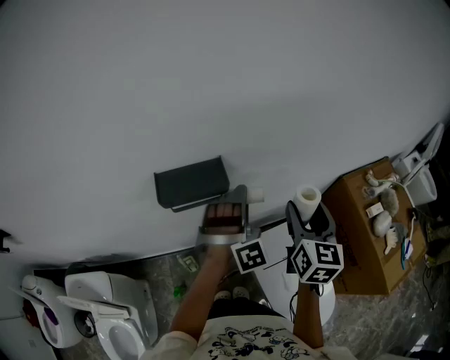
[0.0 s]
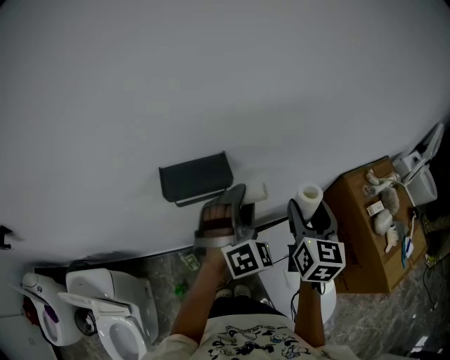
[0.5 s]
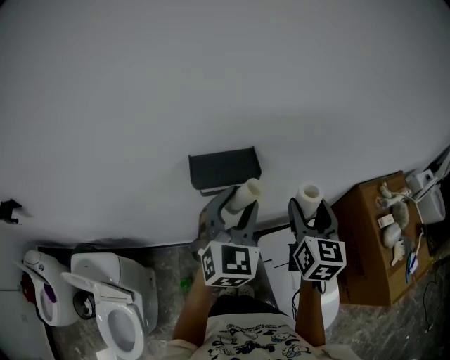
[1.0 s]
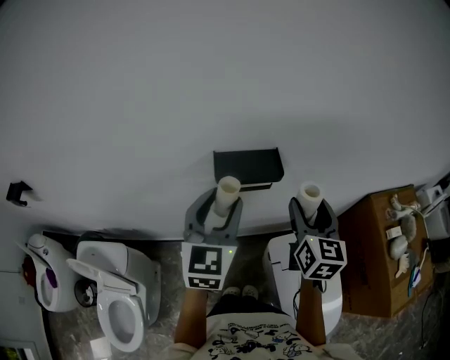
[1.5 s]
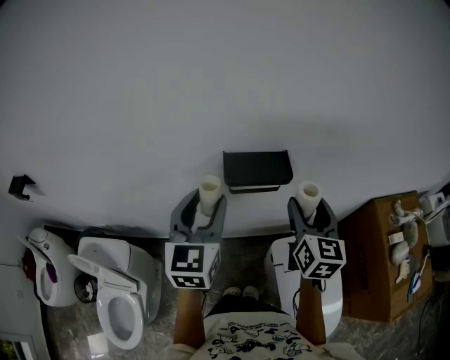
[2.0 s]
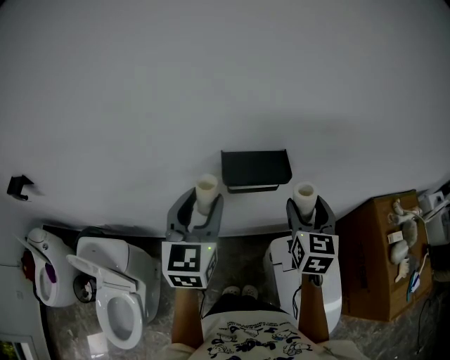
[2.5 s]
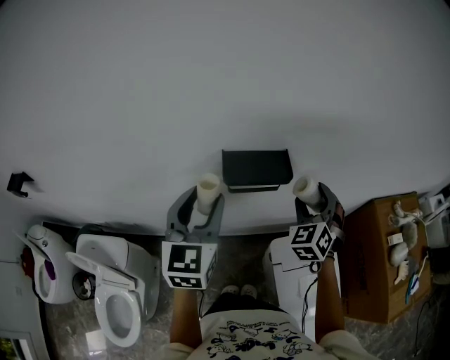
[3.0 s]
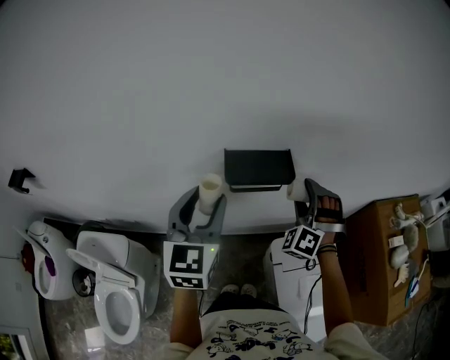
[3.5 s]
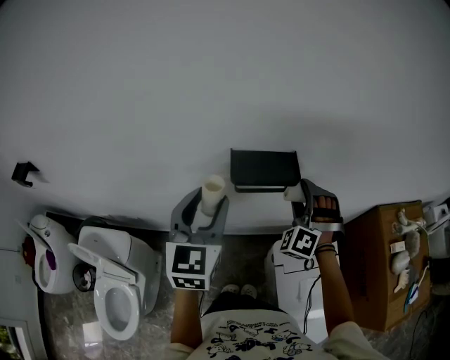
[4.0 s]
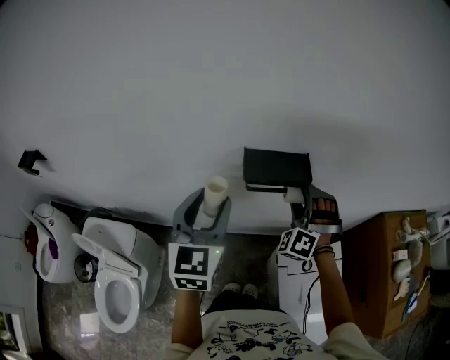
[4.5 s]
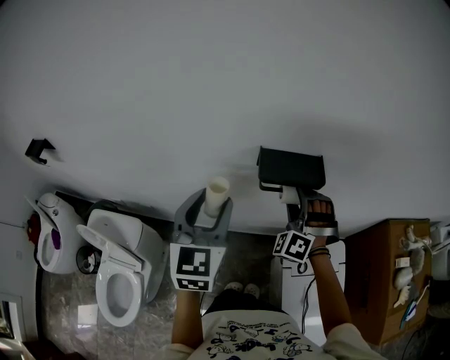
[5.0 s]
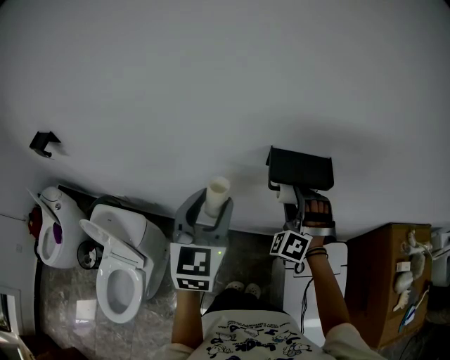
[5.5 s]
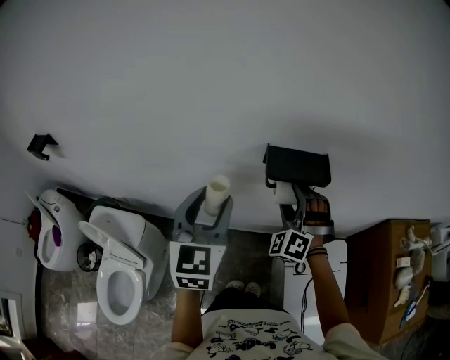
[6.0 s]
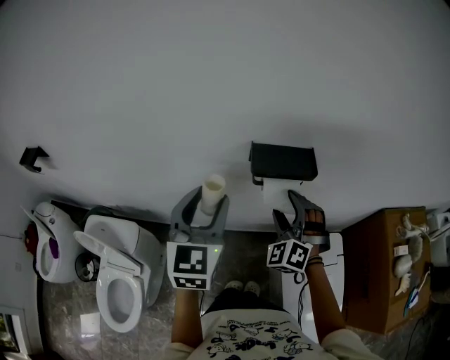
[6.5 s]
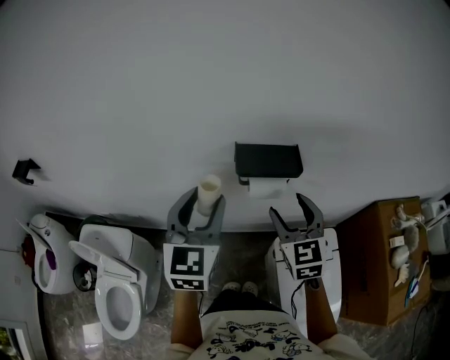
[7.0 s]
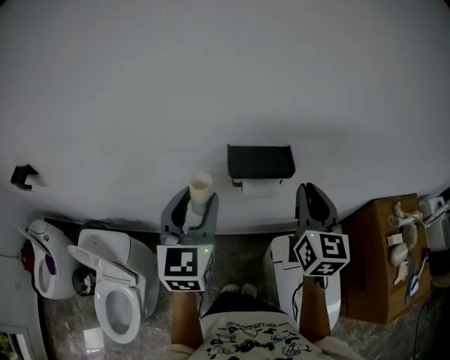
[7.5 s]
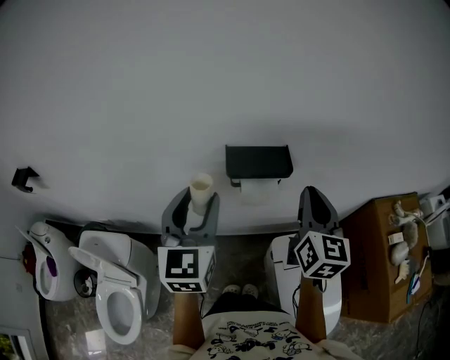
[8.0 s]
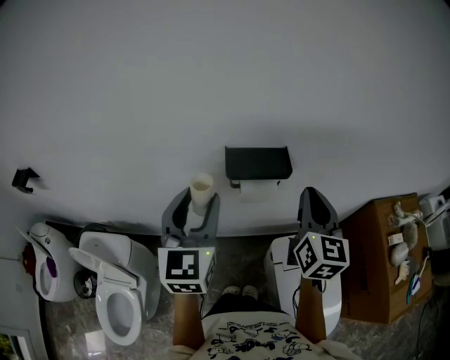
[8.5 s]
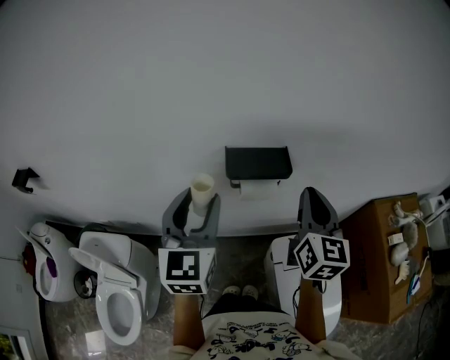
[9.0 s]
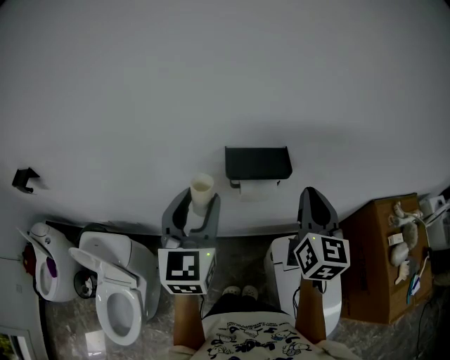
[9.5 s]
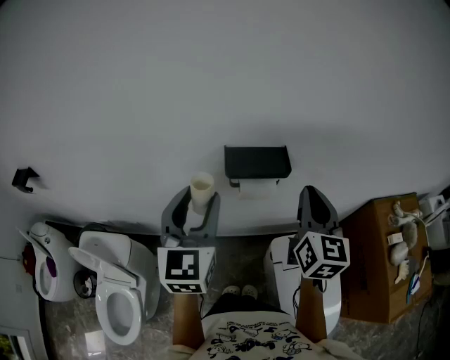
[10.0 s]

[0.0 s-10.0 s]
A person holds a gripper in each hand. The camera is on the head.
0.0 to 2.0 s: The left gripper is displaced to the left and backward by about 25 cm, and rolls counterclockwise, seen from behind, by some 80 degrees. The right gripper goes roughly 15 cm to the left.
2.0 to 4.0 s: The right gripper is displaced downward and forward by about 10 cm, and rotates around the line of its fingers by about 90 degrees, counterclockwise from behind.
4.0 to 6.0 s: The right gripper heads to the left, covering approximately 10 cm; the left gripper moves to the left, about 5 cm.
6.0 to 8.0 s: The right gripper travels to the right, upward and backward by some 20 cm, rotates around the line of its fingers by approximately 80 degrees, clockwise from behind, and closes its fingers; the left gripper goes about 5 cm to the right.
8.0 to 10.0 s: Both grippers stay about where they are.

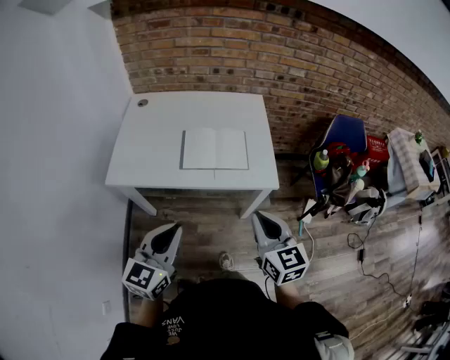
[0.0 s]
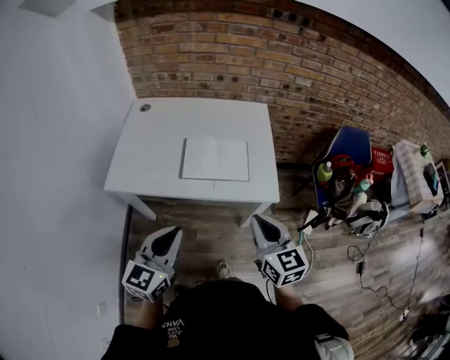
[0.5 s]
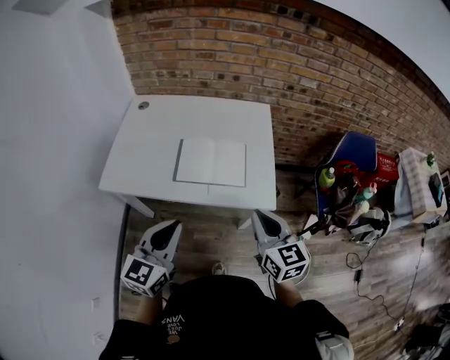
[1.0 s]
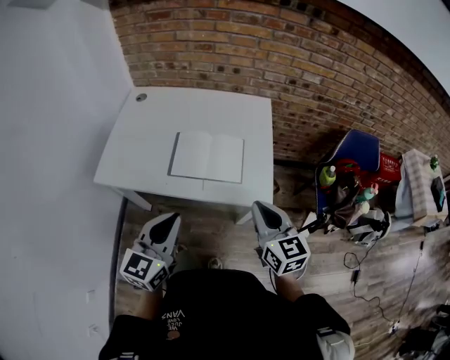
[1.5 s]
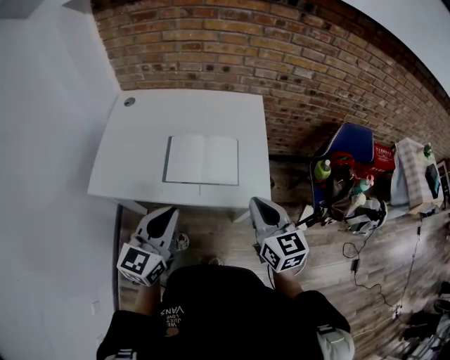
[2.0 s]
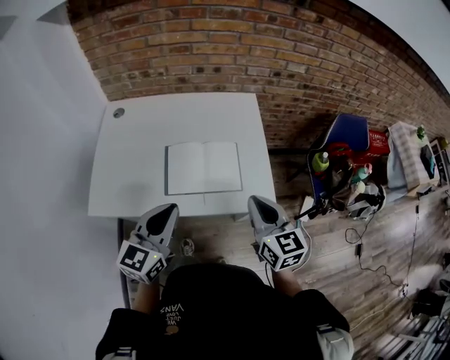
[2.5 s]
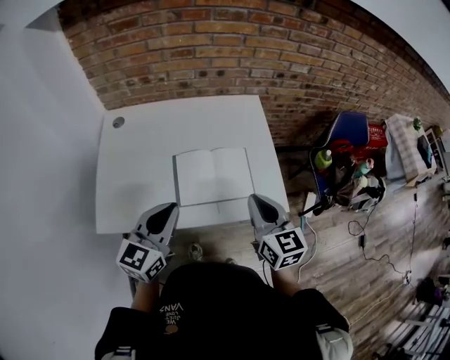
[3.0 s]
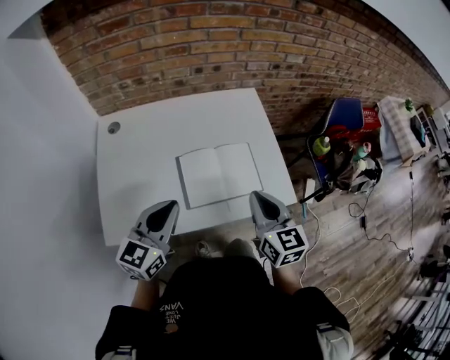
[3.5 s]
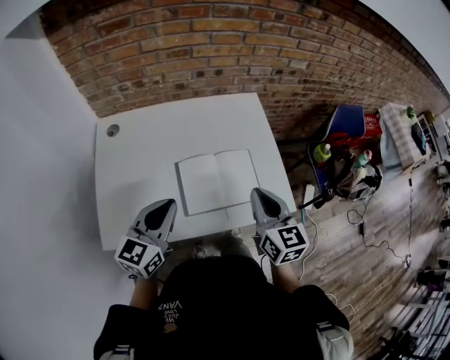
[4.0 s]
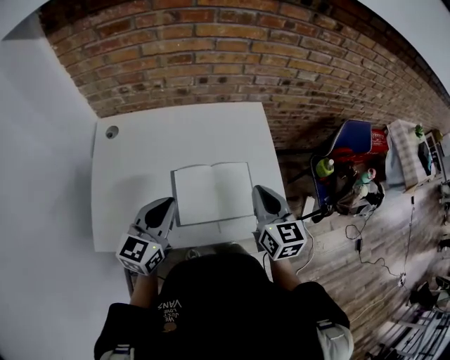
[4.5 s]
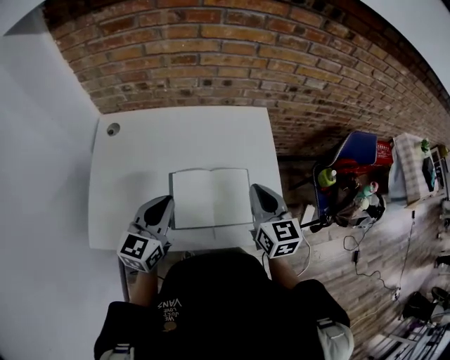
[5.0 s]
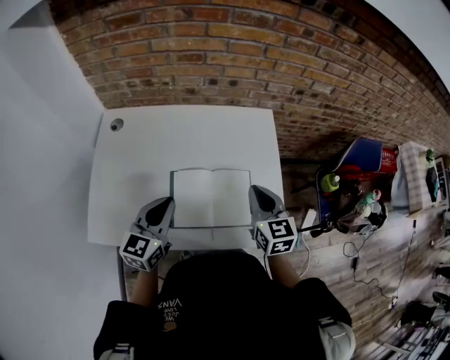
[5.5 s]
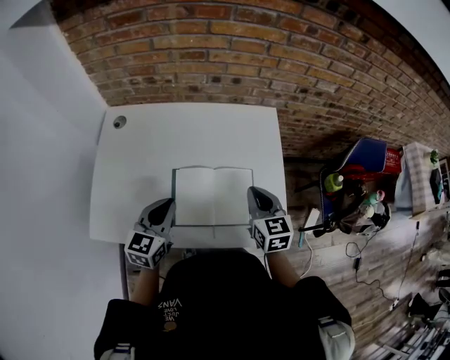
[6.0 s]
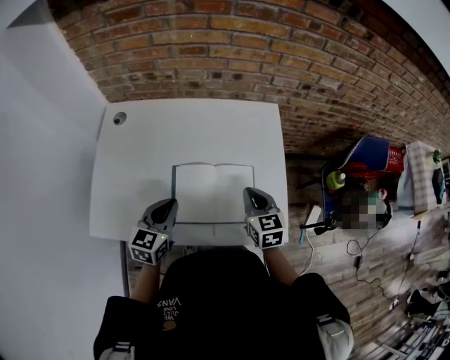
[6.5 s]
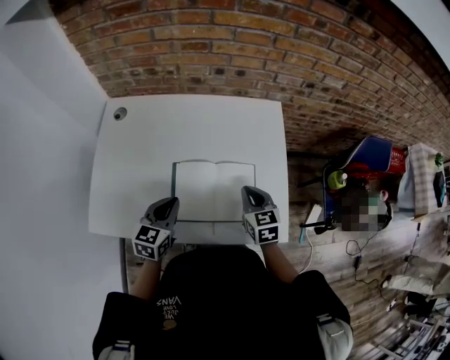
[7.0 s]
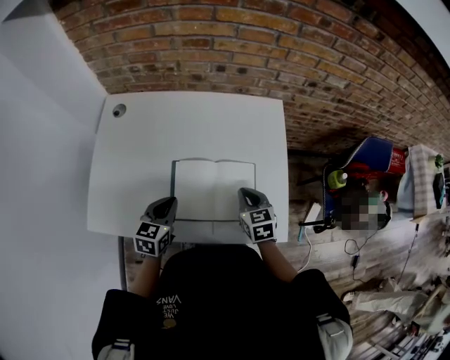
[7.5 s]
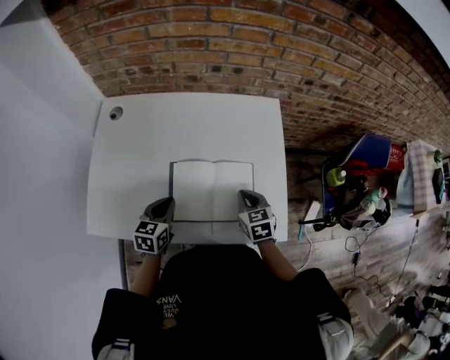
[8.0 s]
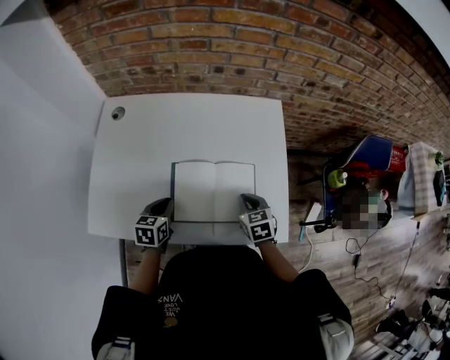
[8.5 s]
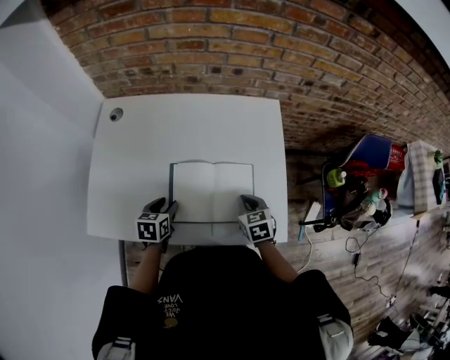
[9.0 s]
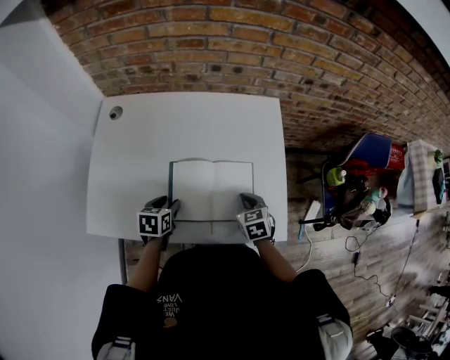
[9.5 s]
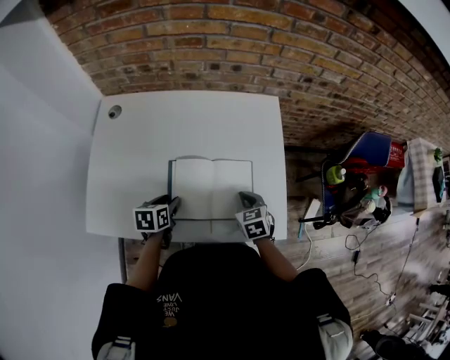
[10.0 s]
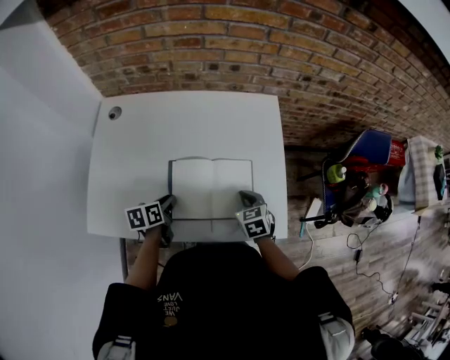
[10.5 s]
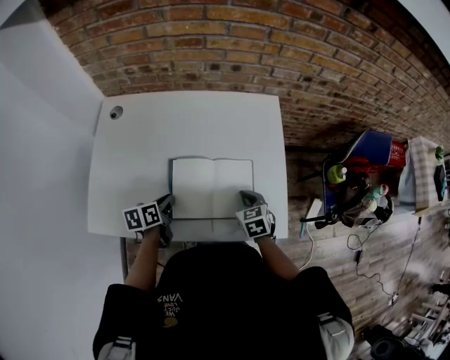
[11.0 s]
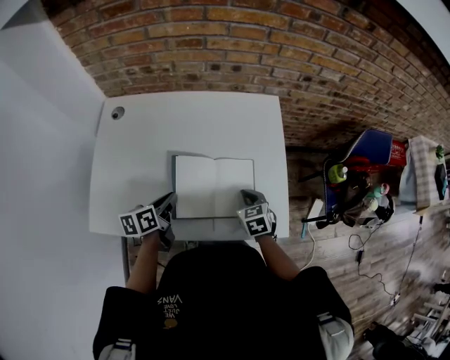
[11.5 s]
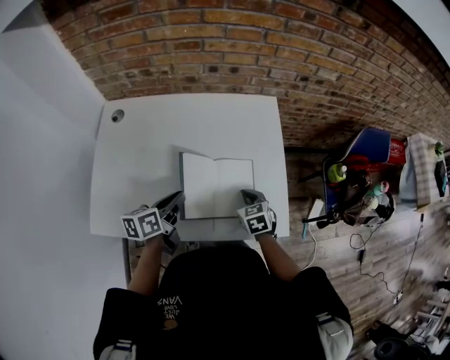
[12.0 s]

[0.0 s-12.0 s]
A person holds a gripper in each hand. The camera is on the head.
0.0 to 2.0 s: The grippers both shift forward by approximately 15 cm.
2.0 to 4.0 s: The right gripper moves to the left and forward, approximately 15 cm. Meanwhile the left gripper heads forward and to the left, covering some 20 cm.
4.0 to 6.0 s: The left gripper goes some 10 cm downward and forward; the right gripper heads forward and downward, covering approximately 15 cm.
6.0 to 8.0 s: Both grippers travel together downward, about 10 cm.
8.0 to 10.0 s: The left gripper changes its angle by approximately 20 degrees, and opens.
10.0 to 12.0 s: The left gripper heads upward, covering approximately 10 cm, turns by roughly 30 degrees, and closes up.

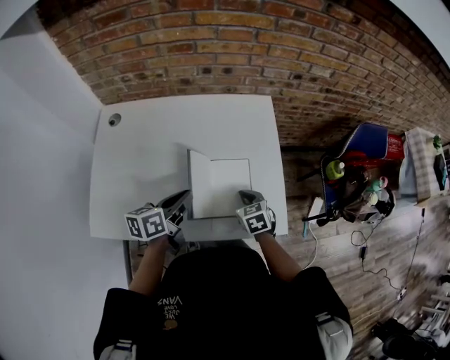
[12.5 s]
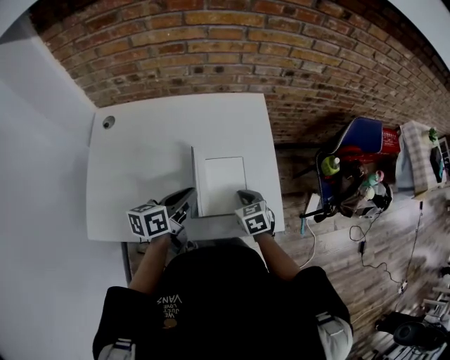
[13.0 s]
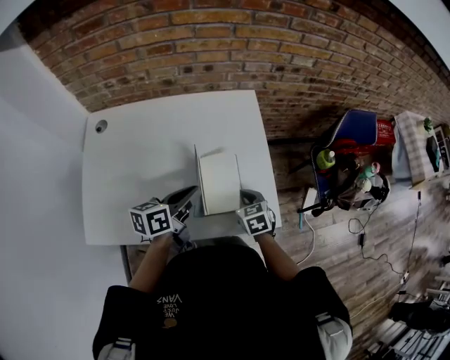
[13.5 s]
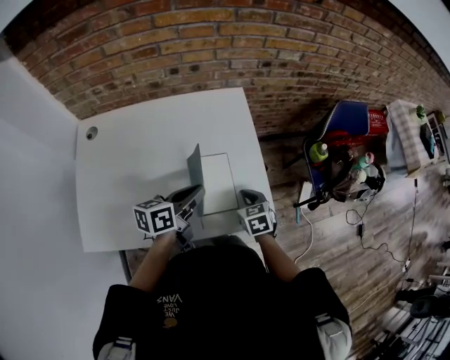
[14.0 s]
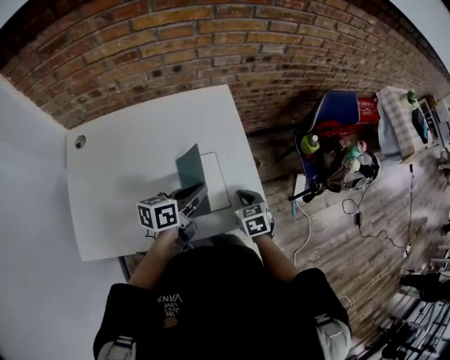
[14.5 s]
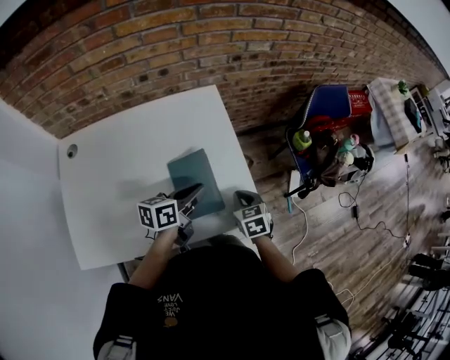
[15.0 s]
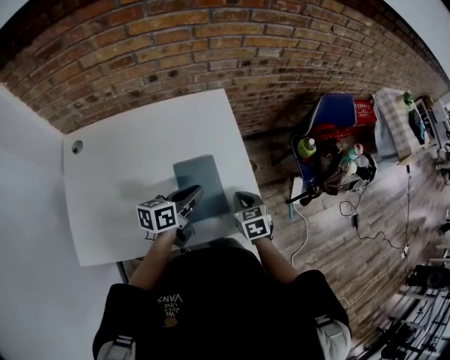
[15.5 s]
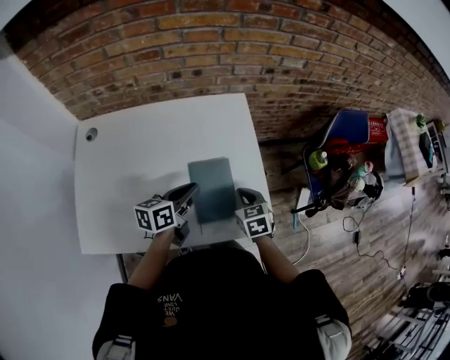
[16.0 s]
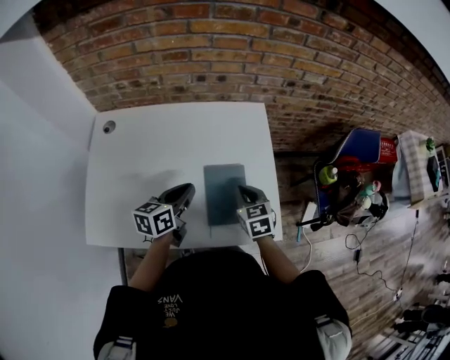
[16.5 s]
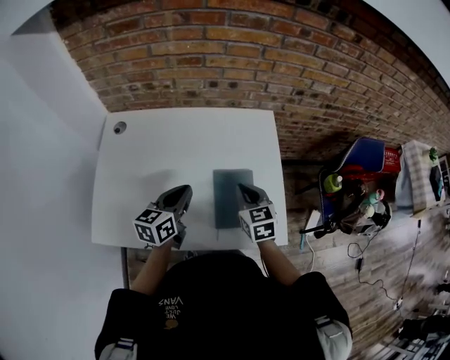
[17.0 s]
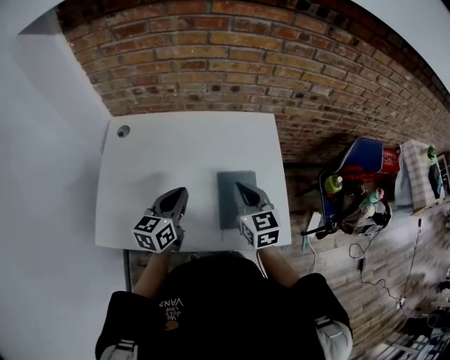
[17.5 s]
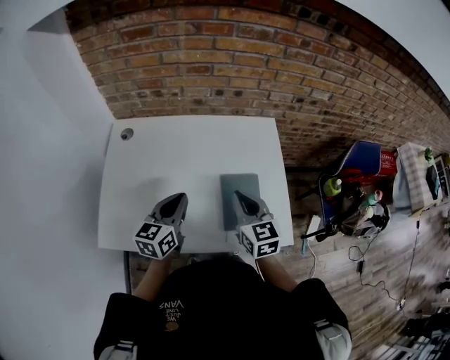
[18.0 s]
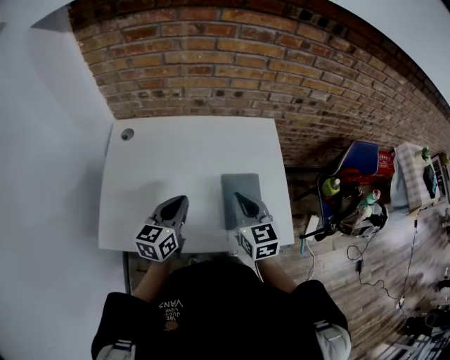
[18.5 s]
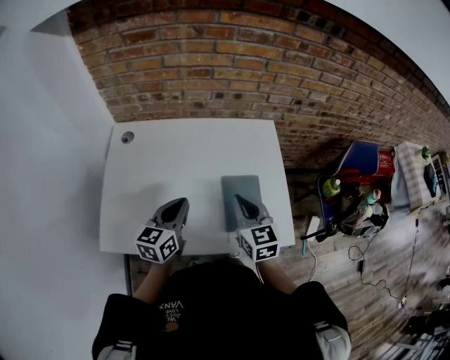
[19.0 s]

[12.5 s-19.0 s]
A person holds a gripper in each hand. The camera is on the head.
12.5 to 14.5 s: The two grippers go roughly 10 cm to the right.
14.5 to 17.0 s: The right gripper is displaced to the left and upward by approximately 15 cm; the left gripper heads to the left, covering about 15 cm, and rotates about 30 degrees.
17.0 to 19.0 s: The left gripper travels to the left by about 5 cm, while the right gripper goes approximately 10 cm upward, to the left and backward.
